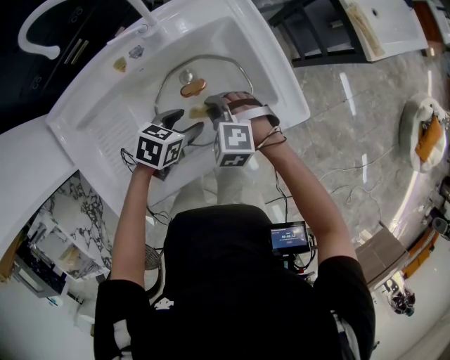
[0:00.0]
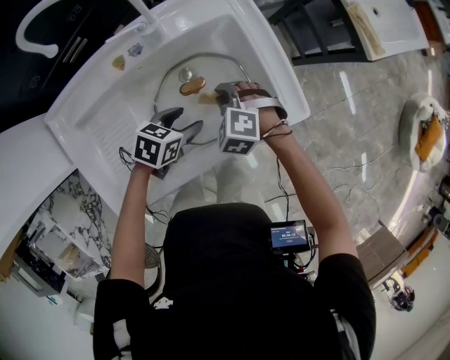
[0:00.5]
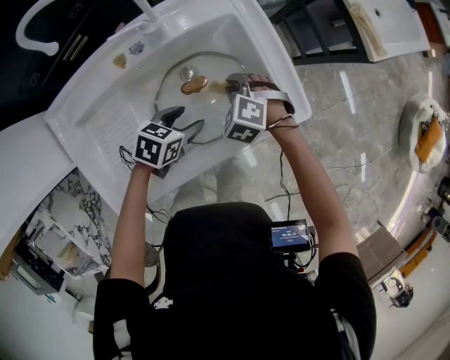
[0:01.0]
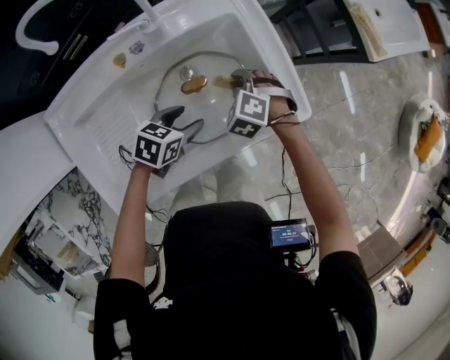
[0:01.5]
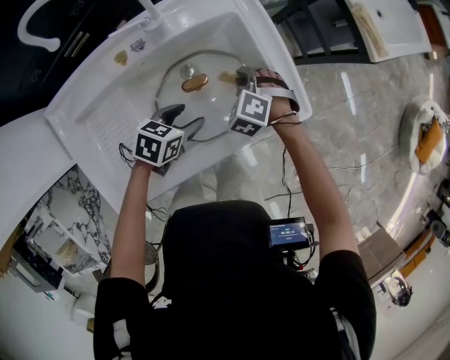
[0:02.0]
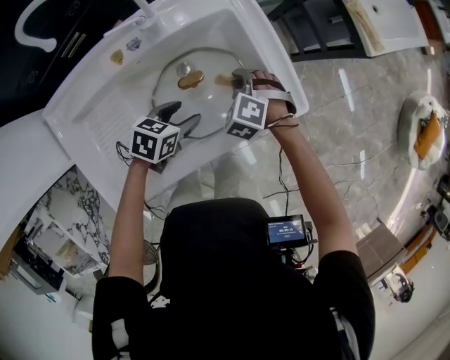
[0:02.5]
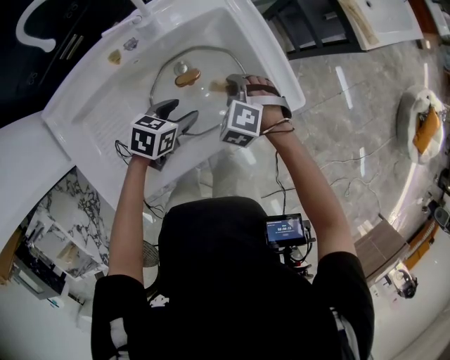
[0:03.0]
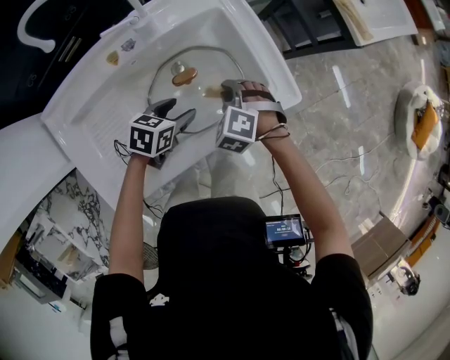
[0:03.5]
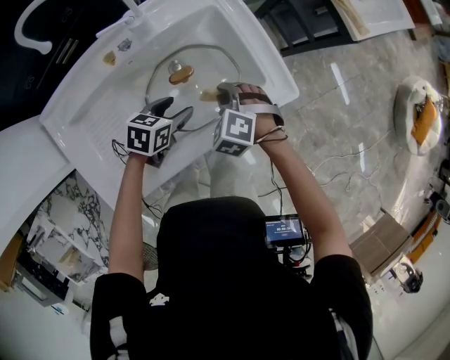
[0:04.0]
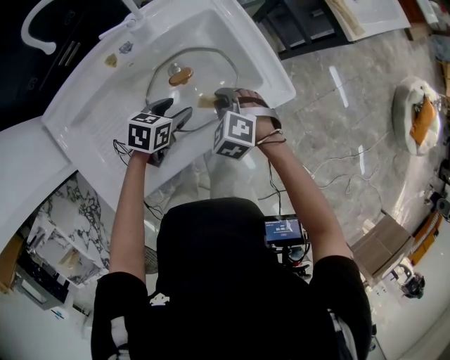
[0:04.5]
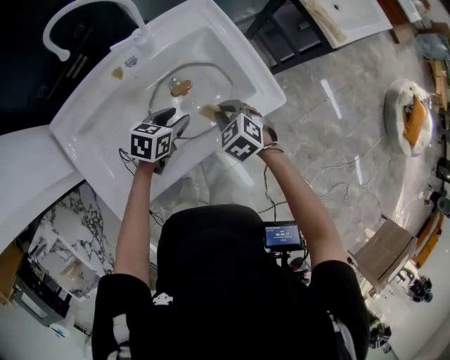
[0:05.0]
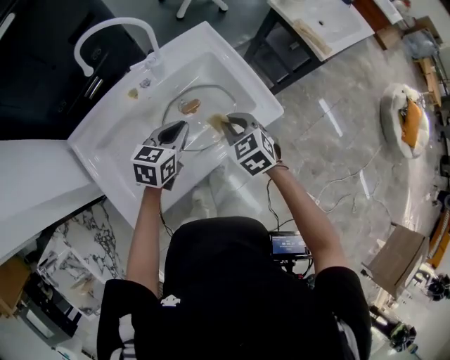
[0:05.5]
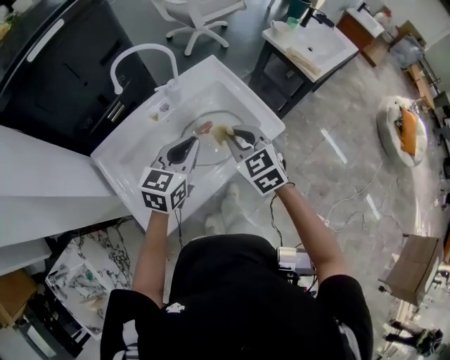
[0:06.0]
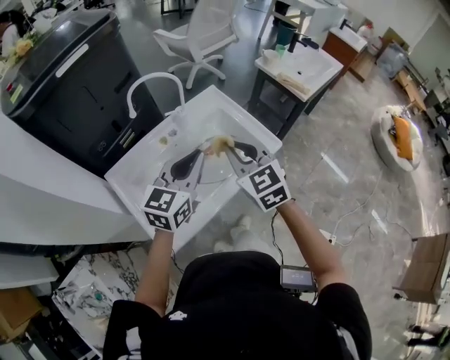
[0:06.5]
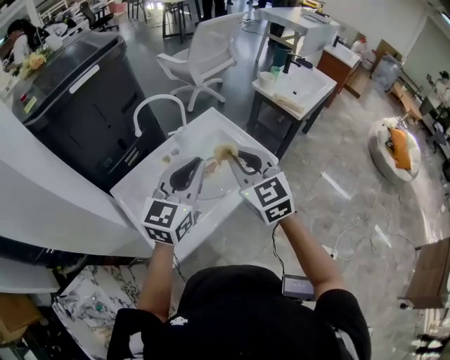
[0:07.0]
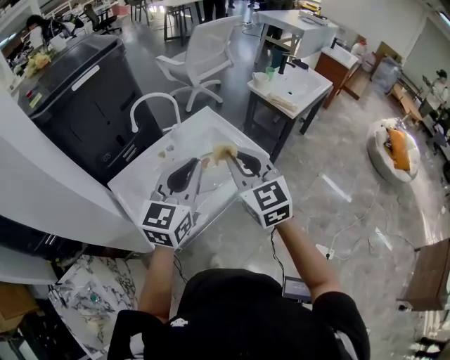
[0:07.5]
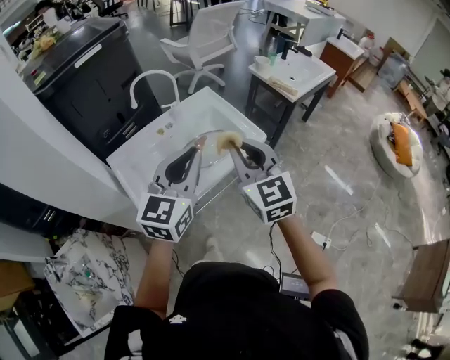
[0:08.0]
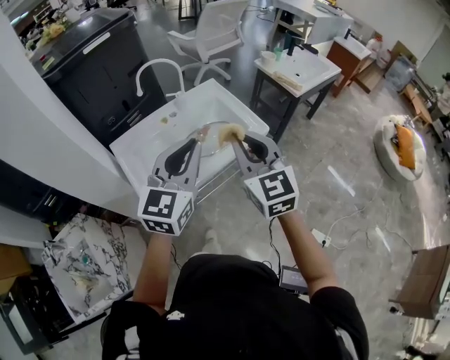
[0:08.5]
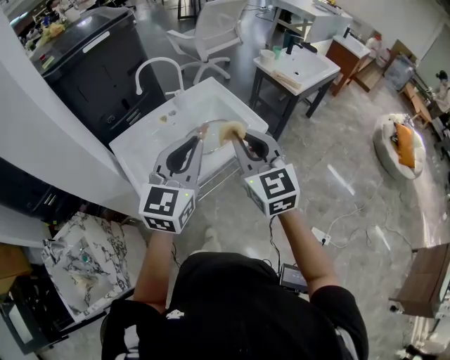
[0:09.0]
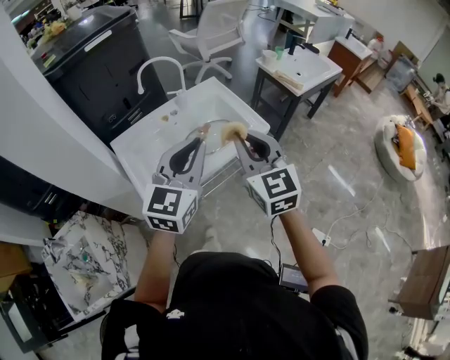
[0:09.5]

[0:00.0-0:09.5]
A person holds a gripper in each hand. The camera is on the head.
0:00.0 to 0:02.0: The right gripper shifts some 10 cm forward and to the right.
0:02.0 to 0:04.0: The right gripper heads backward, covering about 10 cm.
0:04.0 to 0:05.5: The two grippers go roughly 15 cm upward. The right gripper swivels about 40 degrees. The left gripper turns by approximately 20 degrees, and closes up.
0:05.5 to 0:07.5: Both grippers move upward and backward, roughly 35 cm. The left gripper rotates some 40 degrees; the right gripper points its fingers about 40 degrees further upward.
0:07.5 to 0:09.5: Both grippers travel together backward, roughly 10 cm.

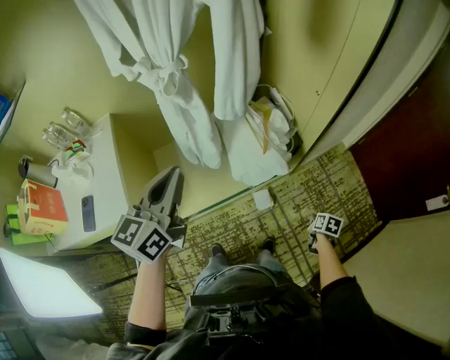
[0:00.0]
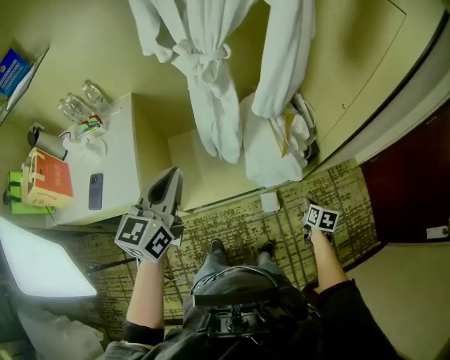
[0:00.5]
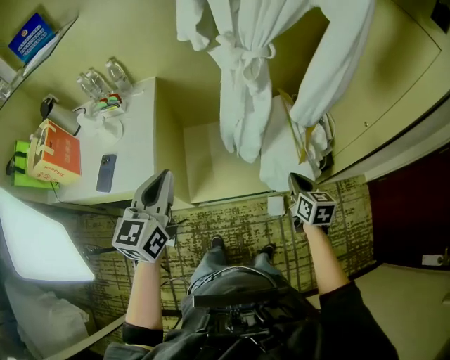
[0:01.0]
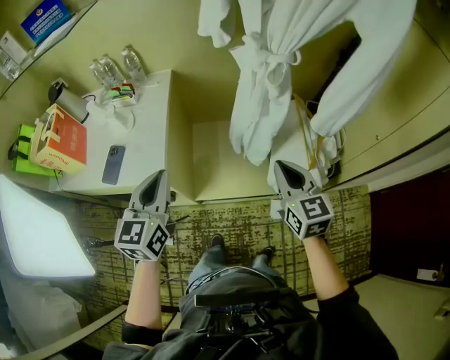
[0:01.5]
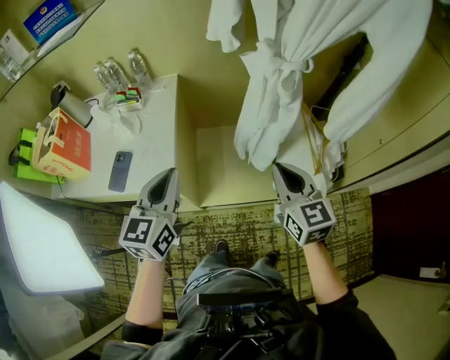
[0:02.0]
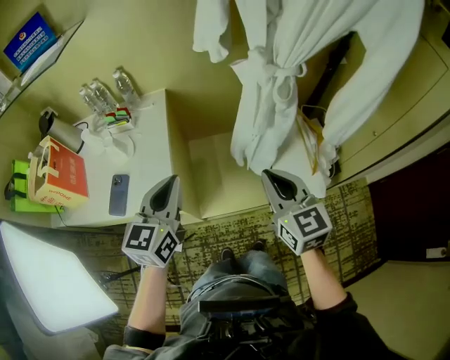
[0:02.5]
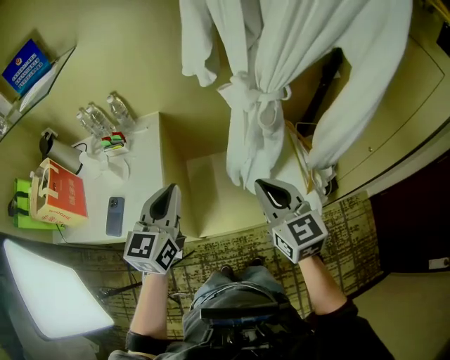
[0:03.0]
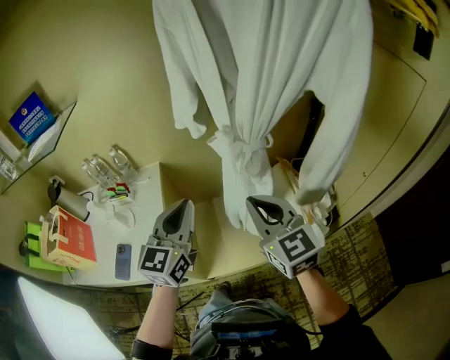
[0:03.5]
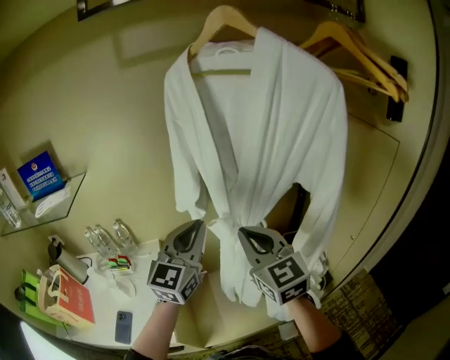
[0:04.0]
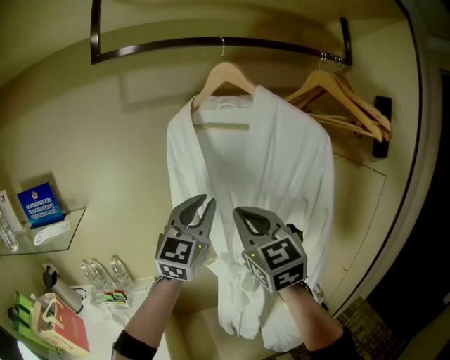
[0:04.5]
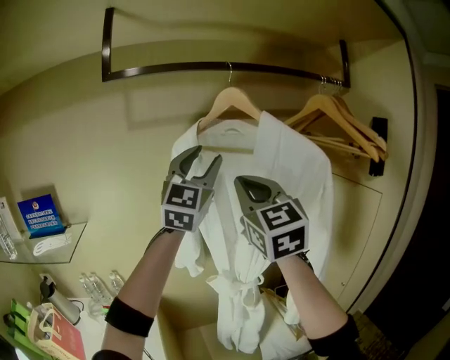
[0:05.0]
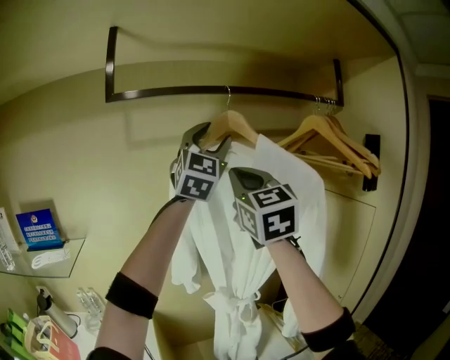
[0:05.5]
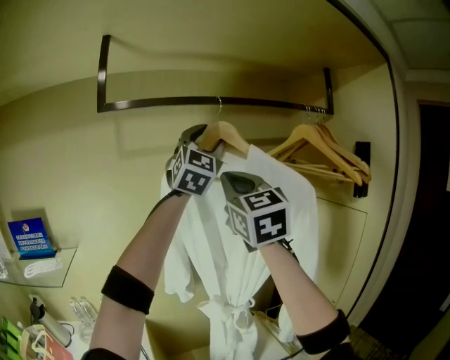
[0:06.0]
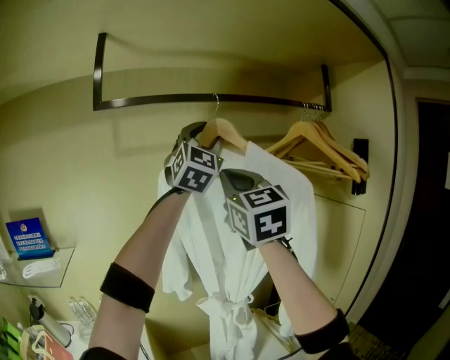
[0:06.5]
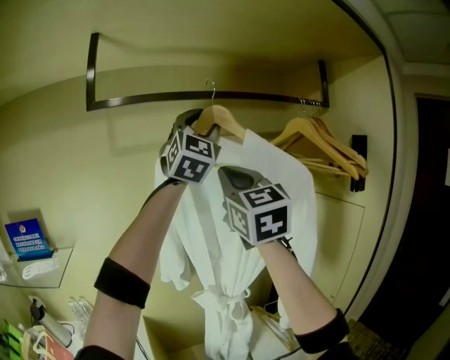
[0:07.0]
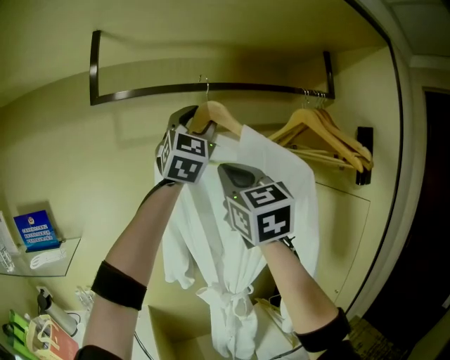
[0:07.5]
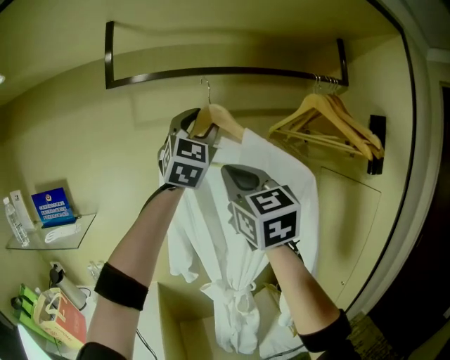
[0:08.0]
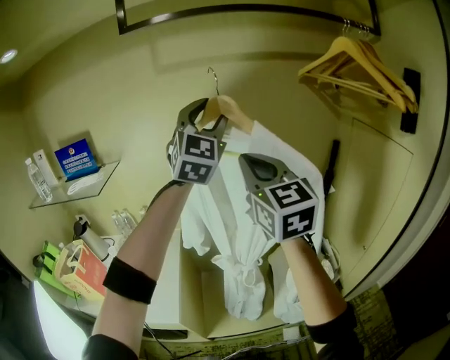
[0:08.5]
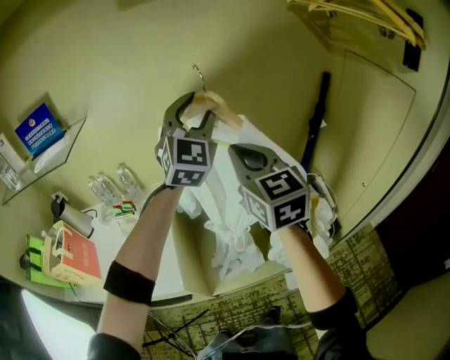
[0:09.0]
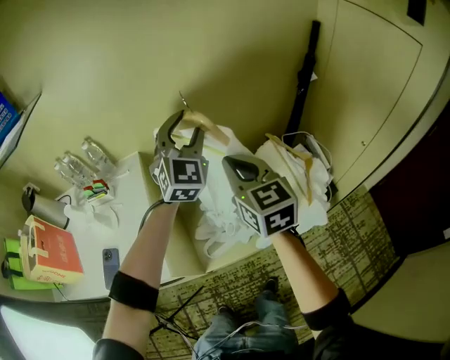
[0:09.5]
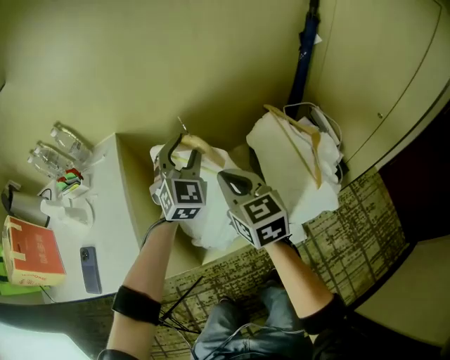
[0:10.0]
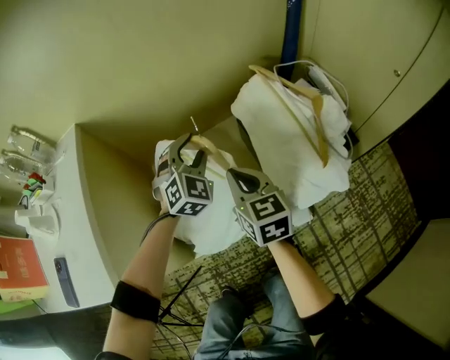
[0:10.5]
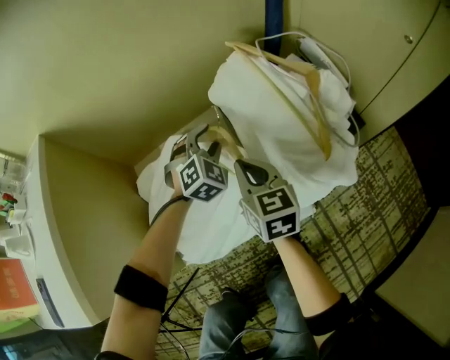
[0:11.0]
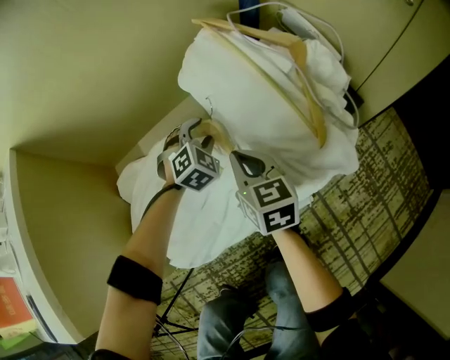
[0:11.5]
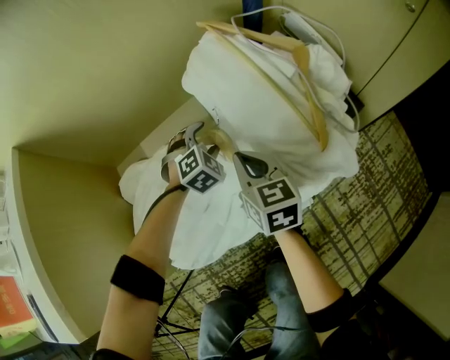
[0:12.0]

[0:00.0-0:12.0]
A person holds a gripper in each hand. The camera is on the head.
0:00.0 to 0:02.0: The left gripper shifts by roughly 25 cm, and changes its angle by about 30 degrees. Meanwhile the right gripper ends up about 60 cm from where it was, and points its fingers about 50 degrees further upward.
0:02.0 to 0:04.0: The left gripper travels forward, upward and to the right by roughly 35 cm, and changes its angle by roughly 30 degrees, while the right gripper moves upward and forward, some 30 cm, and changes its angle by about 20 degrees.
0:04.0 to 0:06.0: The grippers both shift upward by approximately 40 cm. The right gripper changes its angle by about 20 degrees. Meanwhile the left gripper changes its angle by approximately 40 degrees, and opens up.
0:06.0 to 0:08.0: The left gripper shifts roughly 5 cm backward. The right gripper shifts approximately 10 cm backward and downward.
0:08.0 to 0:10.0: The two grippers go roughly 70 cm downward. The right gripper angles its fingers downward, by some 30 degrees; the left gripper points its fingers roughly 40 degrees further downward.
0:10.0 to 0:12.0: Both grippers travel together downward and to the right, some 50 cm. The left gripper angles its fingers downward, by roughly 40 degrees, while the right gripper swivels some 20 degrees.

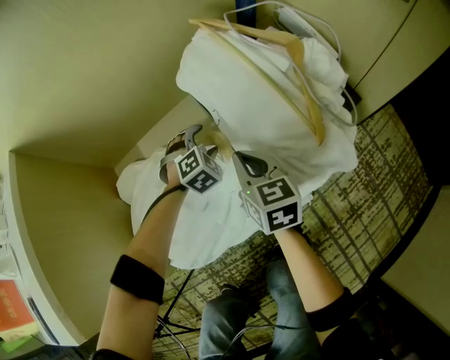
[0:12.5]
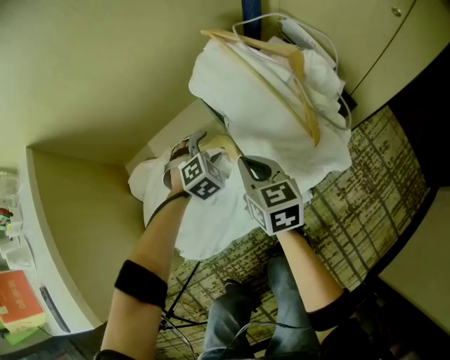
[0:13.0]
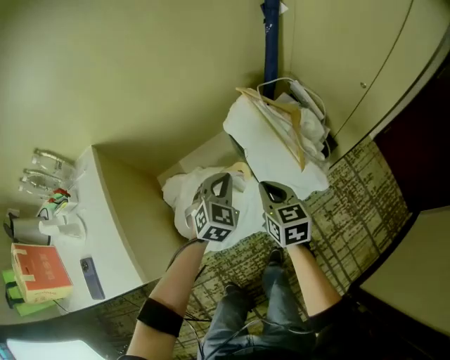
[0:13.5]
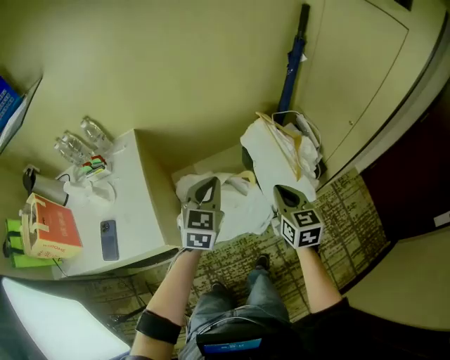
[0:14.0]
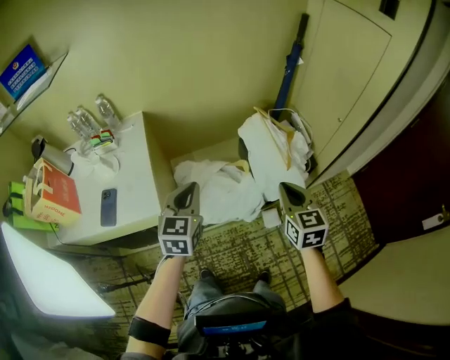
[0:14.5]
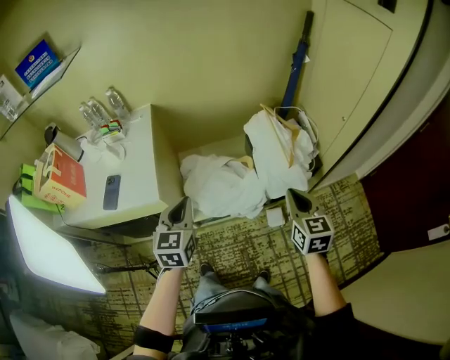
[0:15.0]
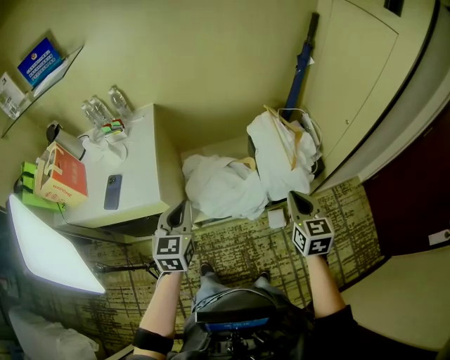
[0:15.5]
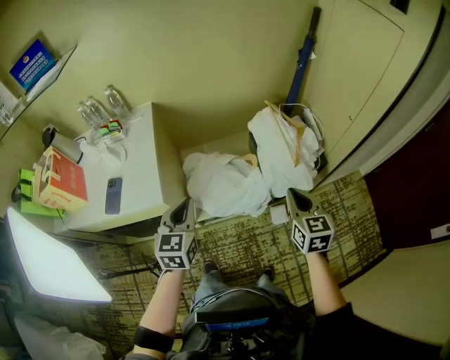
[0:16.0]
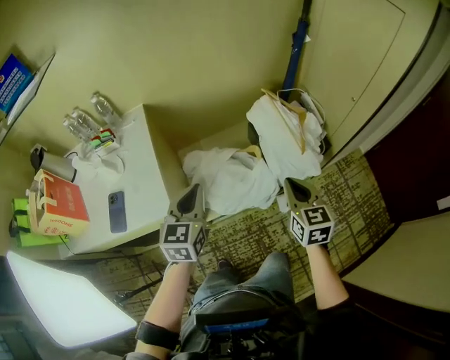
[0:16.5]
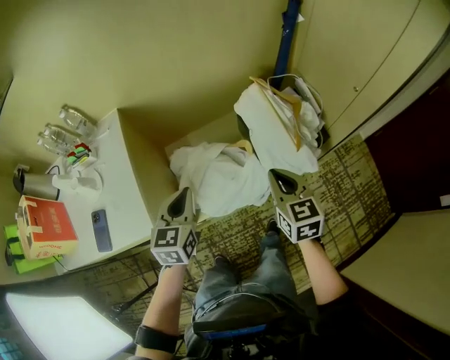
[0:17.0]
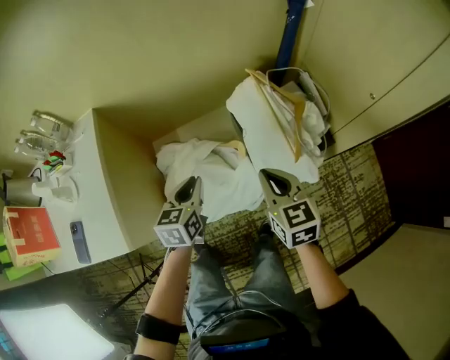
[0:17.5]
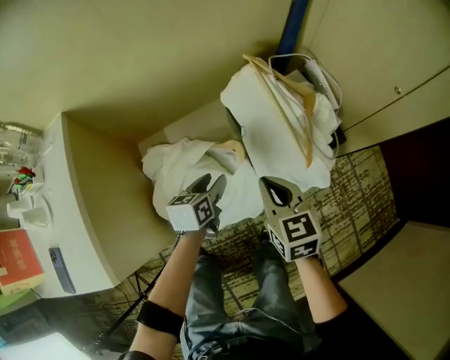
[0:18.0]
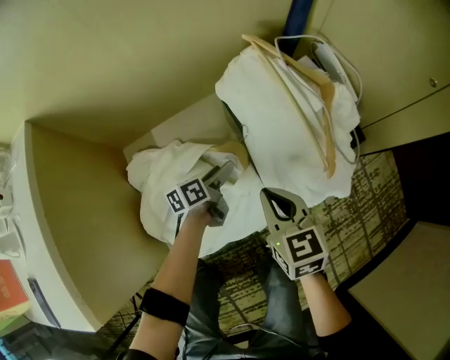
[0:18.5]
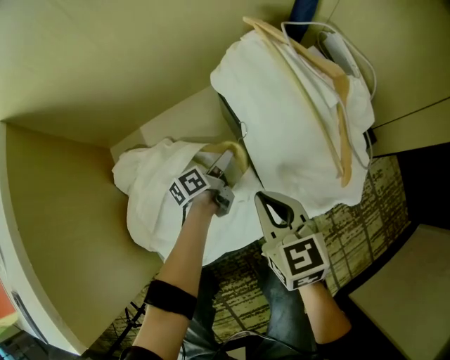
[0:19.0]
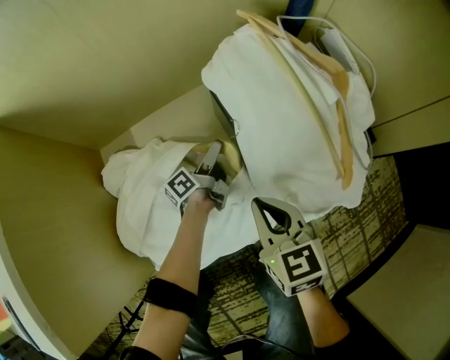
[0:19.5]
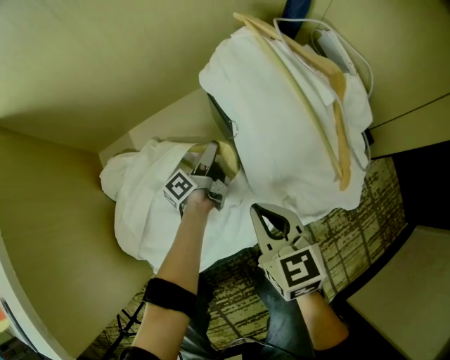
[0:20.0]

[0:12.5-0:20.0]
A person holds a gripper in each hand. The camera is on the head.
0:12.5 to 0:14.5: The grippers both shift upward and backward by roughly 60 cm. The left gripper rolls counterclockwise, seen from behind, by roughly 60 degrees, and closes.
0:14.5 to 0:16.5: The left gripper travels backward and back again, some 10 cm each way. The right gripper shifts by some 5 cm.
0:16.5 to 0:18.0: The right gripper goes approximately 30 cm downward and forward. Meanwhile the left gripper heads downward, forward and to the right, covering some 50 cm, turns by approximately 40 degrees, and opens its fingers.
0:18.0 to 0:20.0: The right gripper moves downward, roughly 20 cm; the left gripper moves downward and forward, some 30 cm, and rotates around the line of its fingers by approximately 50 degrees, counterclockwise from behind.
